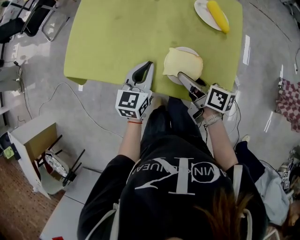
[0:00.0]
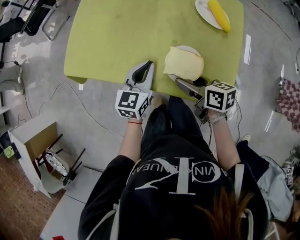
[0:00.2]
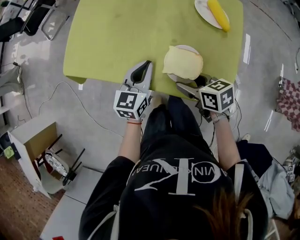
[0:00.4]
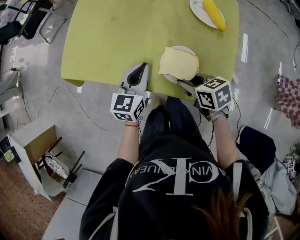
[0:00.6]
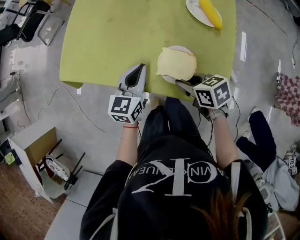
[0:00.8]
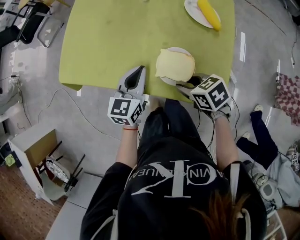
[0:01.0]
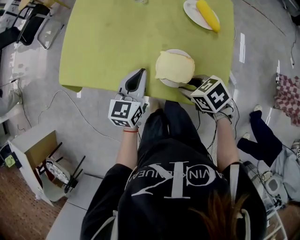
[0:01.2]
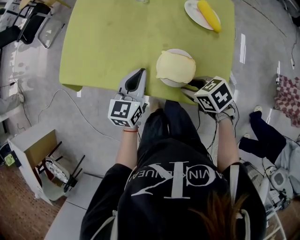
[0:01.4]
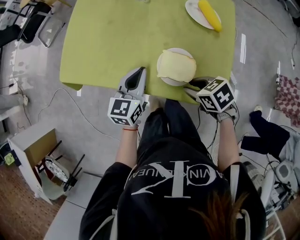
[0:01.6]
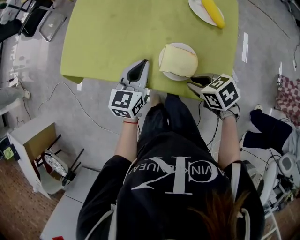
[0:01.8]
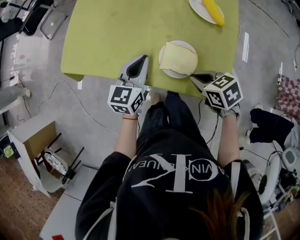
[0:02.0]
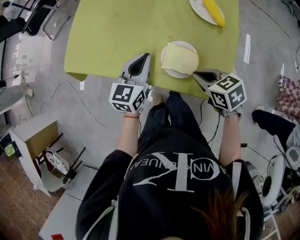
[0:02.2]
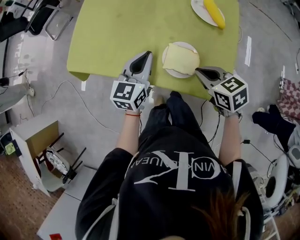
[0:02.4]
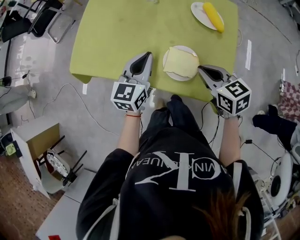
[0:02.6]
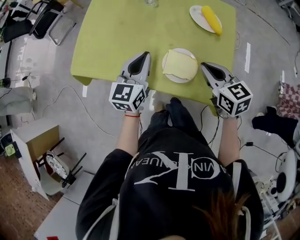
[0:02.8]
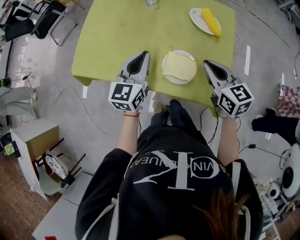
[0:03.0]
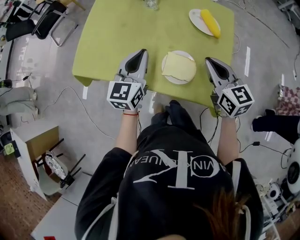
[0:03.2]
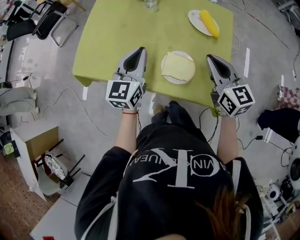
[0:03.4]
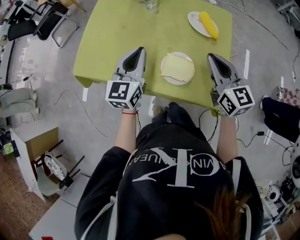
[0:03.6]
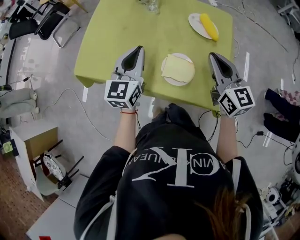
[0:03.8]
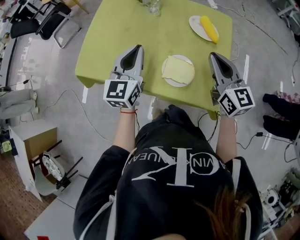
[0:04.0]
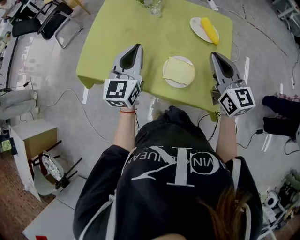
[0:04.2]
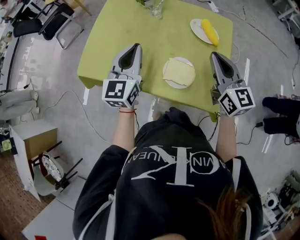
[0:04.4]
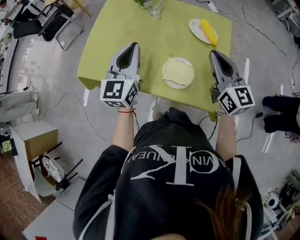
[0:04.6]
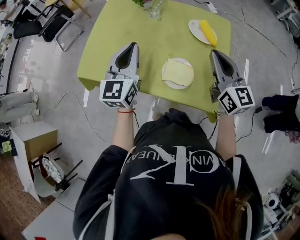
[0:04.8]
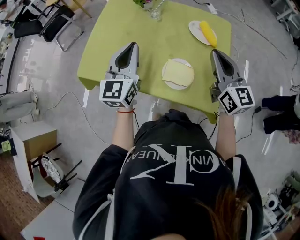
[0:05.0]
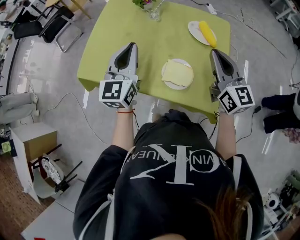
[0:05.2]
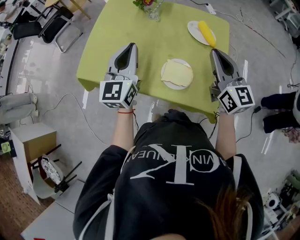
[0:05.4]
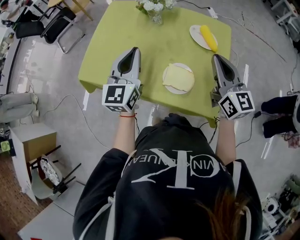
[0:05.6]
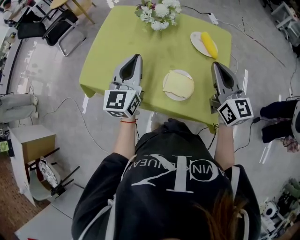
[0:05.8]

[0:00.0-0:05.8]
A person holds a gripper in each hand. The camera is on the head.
0:00.0 to 0:01.4: The right gripper ends up approximately 5 cm from where it was, and tips its fingers downward by some 30 degrees.
0:01.4 to 0:02.8: The right gripper goes some 10 cm upward, rotates about 40 degrees, and closes its fingers; the left gripper shifts some 5 cm upward.
0:02.8 to 0:04.4: Both grippers travel together upward, roughly 10 cm. The right gripper swivels roughly 30 degrees.
0:04.4 to 0:05.8: The grippers stay close to where they were, moving slightly.

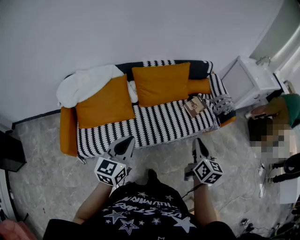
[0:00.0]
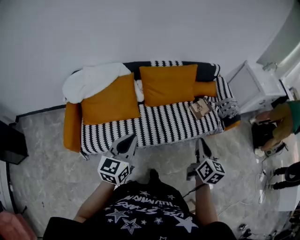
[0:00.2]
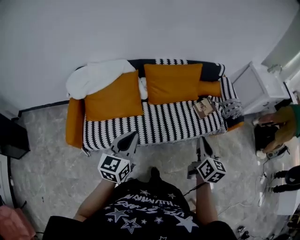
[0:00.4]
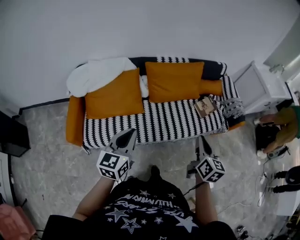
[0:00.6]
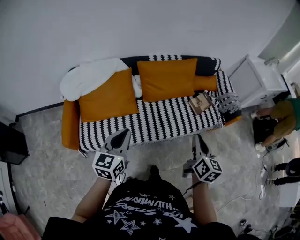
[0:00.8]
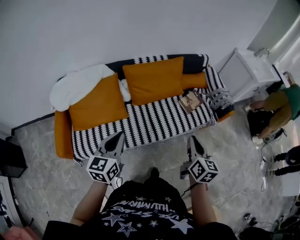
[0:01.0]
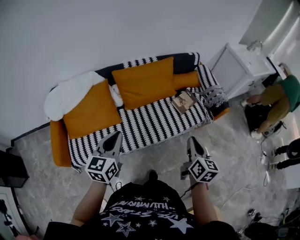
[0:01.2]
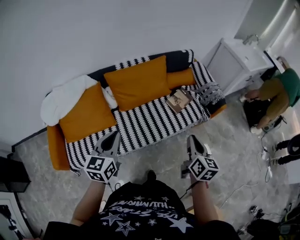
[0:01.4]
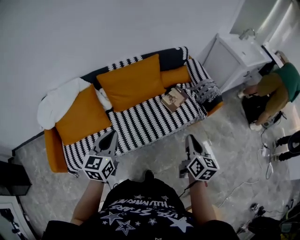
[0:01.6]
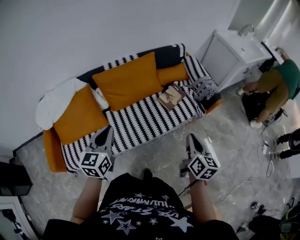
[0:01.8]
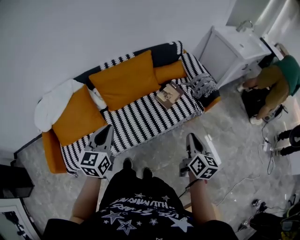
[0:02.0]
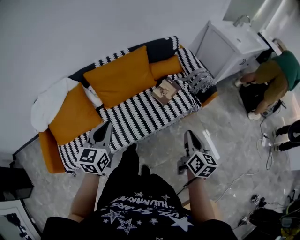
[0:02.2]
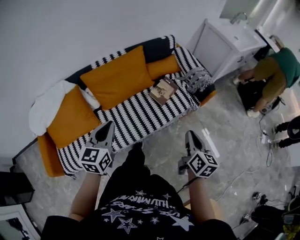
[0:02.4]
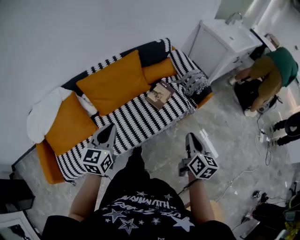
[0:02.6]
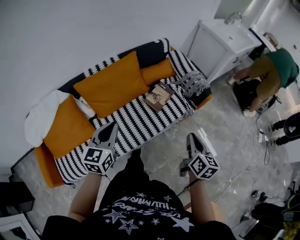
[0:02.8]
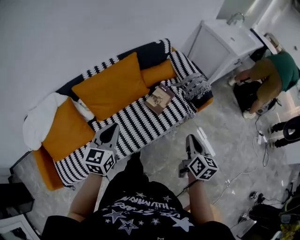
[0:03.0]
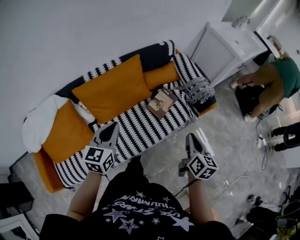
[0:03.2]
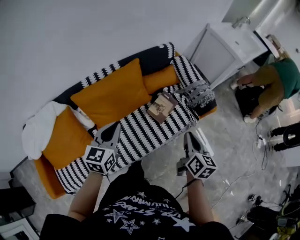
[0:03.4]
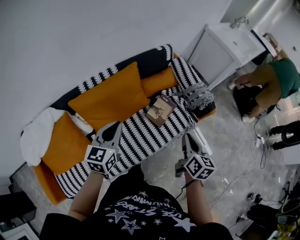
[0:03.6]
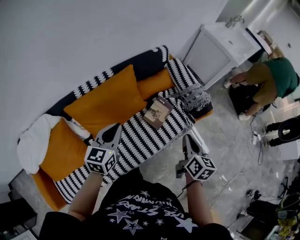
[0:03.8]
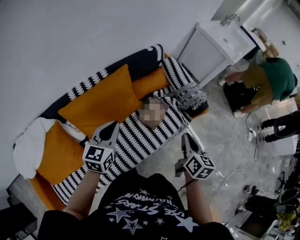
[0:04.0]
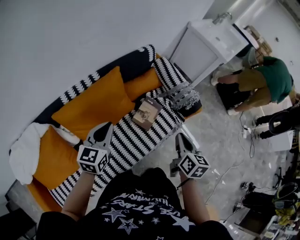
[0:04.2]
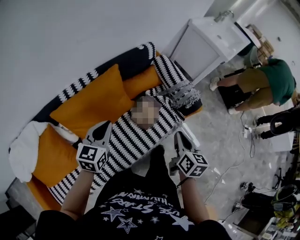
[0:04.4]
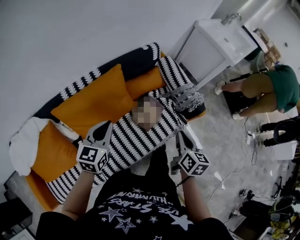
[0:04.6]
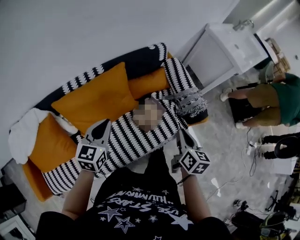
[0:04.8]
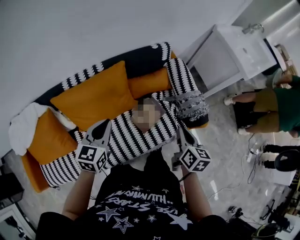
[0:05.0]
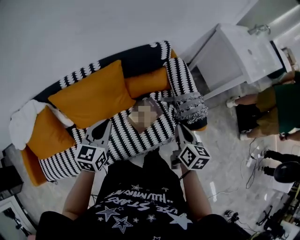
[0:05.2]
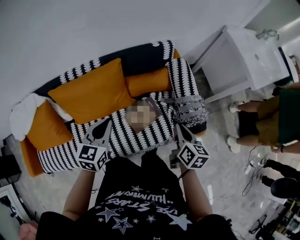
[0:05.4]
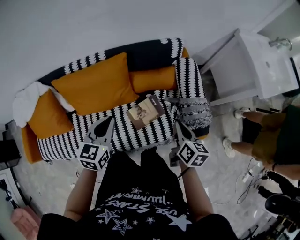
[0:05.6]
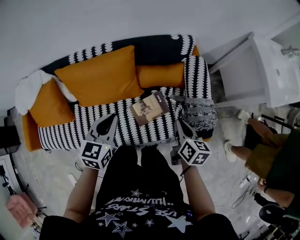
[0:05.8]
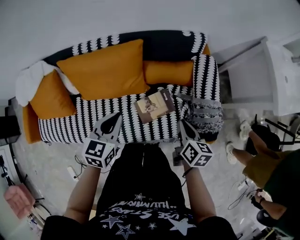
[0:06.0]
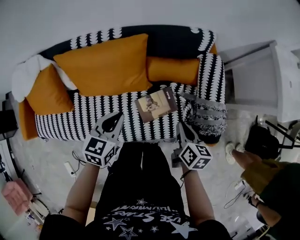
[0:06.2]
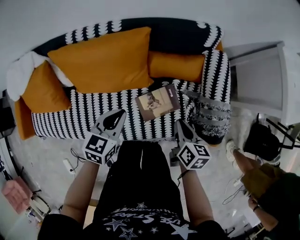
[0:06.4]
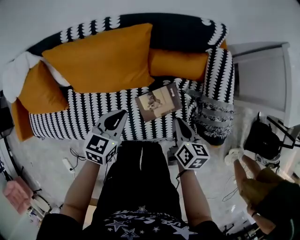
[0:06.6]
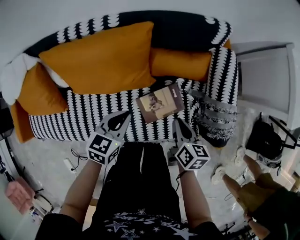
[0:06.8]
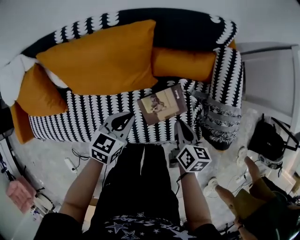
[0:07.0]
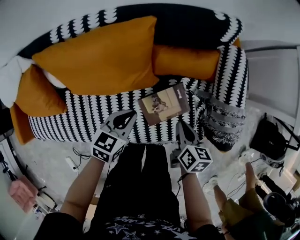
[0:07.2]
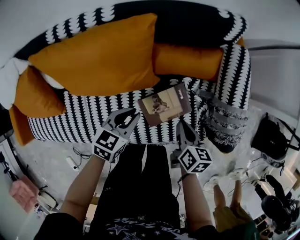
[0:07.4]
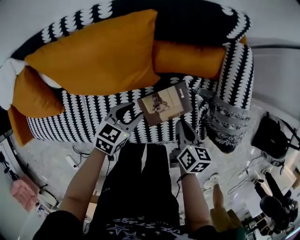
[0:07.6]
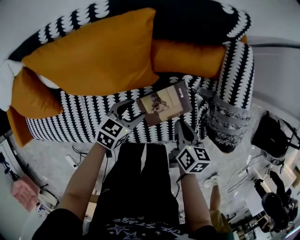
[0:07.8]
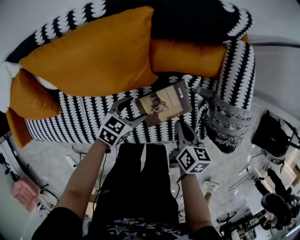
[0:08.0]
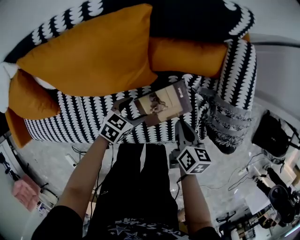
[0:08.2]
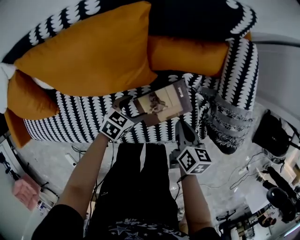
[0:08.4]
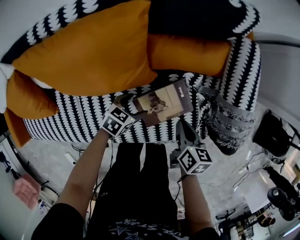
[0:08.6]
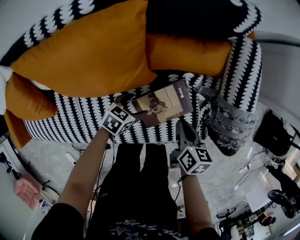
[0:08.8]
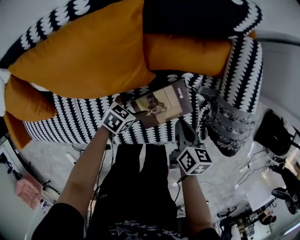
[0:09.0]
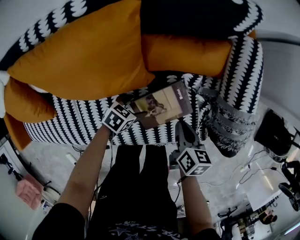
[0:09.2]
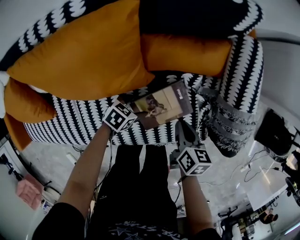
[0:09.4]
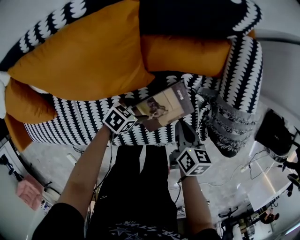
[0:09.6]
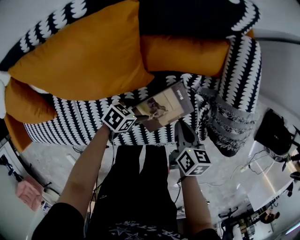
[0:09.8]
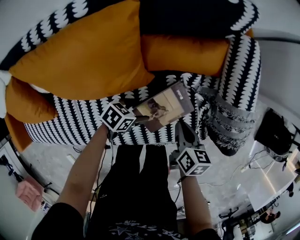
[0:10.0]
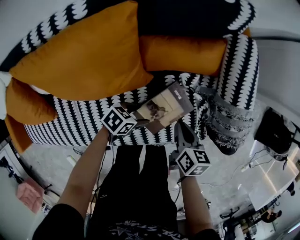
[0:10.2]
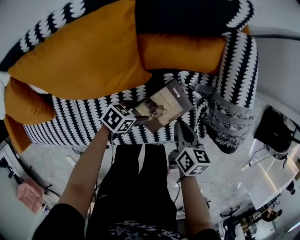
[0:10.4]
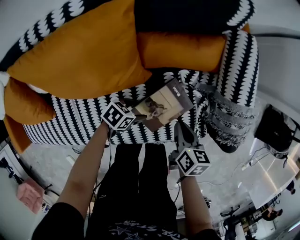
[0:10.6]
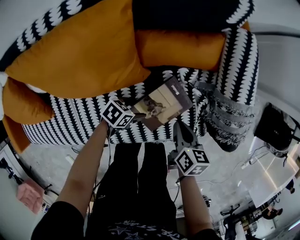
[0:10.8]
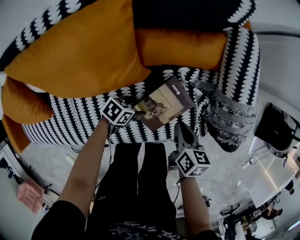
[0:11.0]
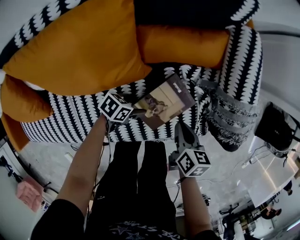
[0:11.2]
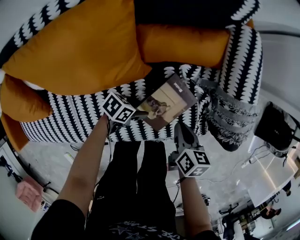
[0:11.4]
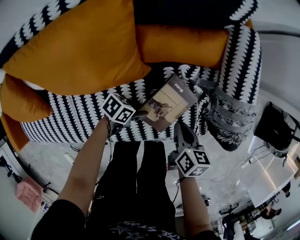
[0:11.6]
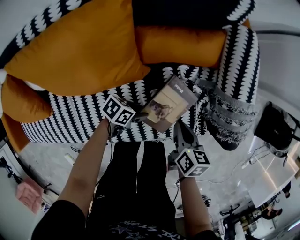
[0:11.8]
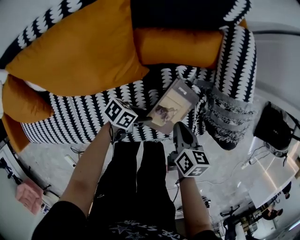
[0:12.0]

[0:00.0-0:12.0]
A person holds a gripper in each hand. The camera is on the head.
0:00.0 to 0:01.6: The left gripper goes approximately 15 cm forward and to the right, while the right gripper shifts about 15 cm to the right.
0:01.6 to 0:03.0: The two grippers go about 15 cm forward and to the right.
0:03.0 to 0:04.4: The right gripper shifts about 15 cm forward and to the left; the left gripper goes roughly 15 cm forward.
0:04.4 to 0:06.0: The left gripper ends up roughly 15 cm from where it was, and changes its angle by roughly 30 degrees; the right gripper shifts by about 25 cm, and turns by some 40 degrees.
0:06.0 to 0:07.6: Both grippers move downward, about 20 cm. The left gripper changes its angle by approximately 20 degrees, and opens up.
0:07.6 to 0:09.0: The left gripper is displaced downward by approximately 15 cm, and opens up.
0:09.0 to 0:10.4: The grippers make only small movements.
0:10.4 to 0:12.0: The left gripper shifts by about 5 cm, and closes.

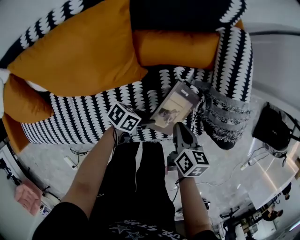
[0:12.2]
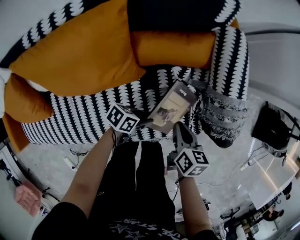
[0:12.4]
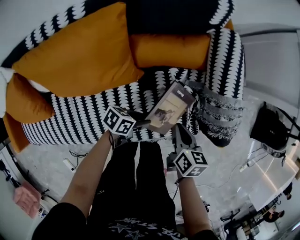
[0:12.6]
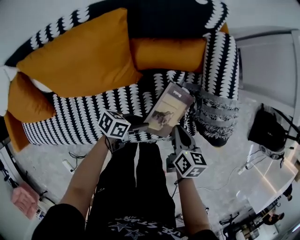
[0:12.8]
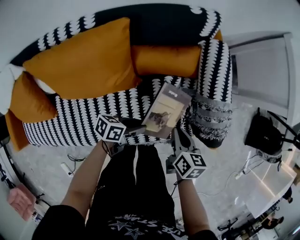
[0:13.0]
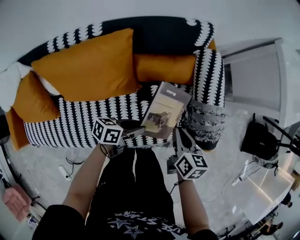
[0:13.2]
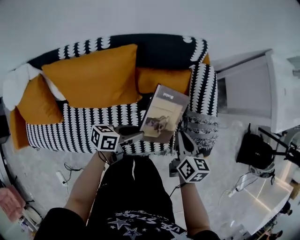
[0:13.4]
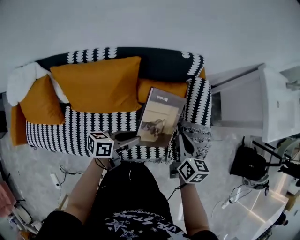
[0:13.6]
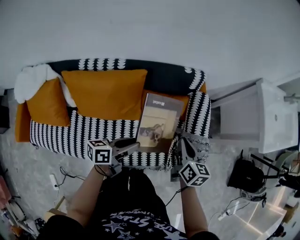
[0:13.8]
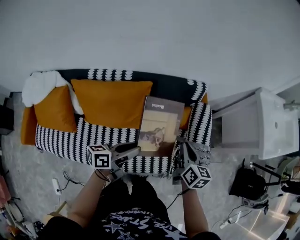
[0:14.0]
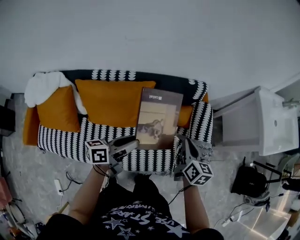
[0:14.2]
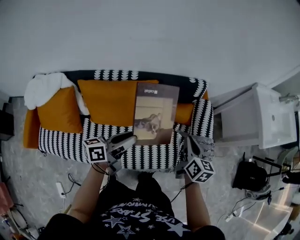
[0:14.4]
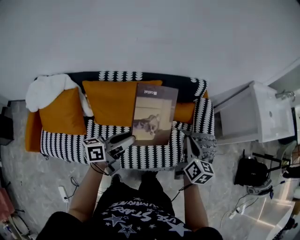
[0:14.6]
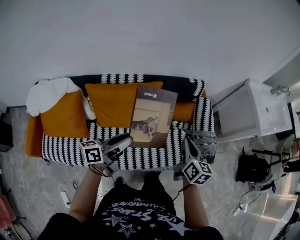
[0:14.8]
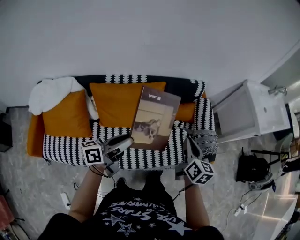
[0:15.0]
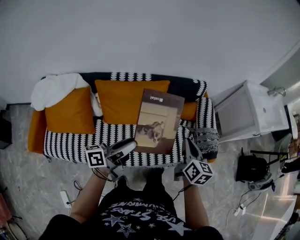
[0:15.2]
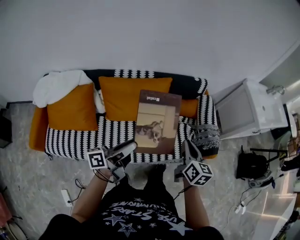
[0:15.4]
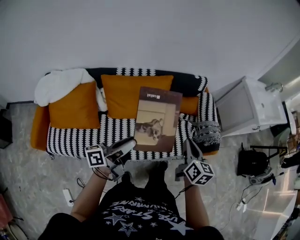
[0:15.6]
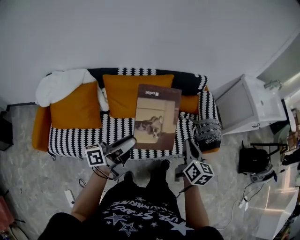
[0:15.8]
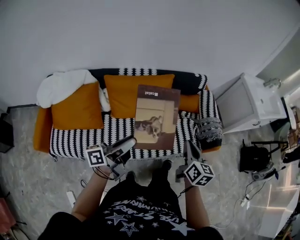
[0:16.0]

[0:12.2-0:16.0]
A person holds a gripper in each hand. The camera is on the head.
0:12.2 to 0:13.4: Both grippers travel together upward, roughly 20 cm. The left gripper swivels some 30 degrees.
0:13.4 to 0:14.8: The left gripper goes roughly 30 cm upward, to the left and backward, and turns by roughly 30 degrees, while the right gripper goes about 20 cm upward, backward and to the left.
0:14.8 to 0:16.0: Both grippers move backward, about 20 cm.

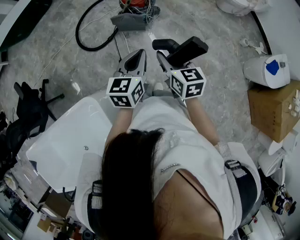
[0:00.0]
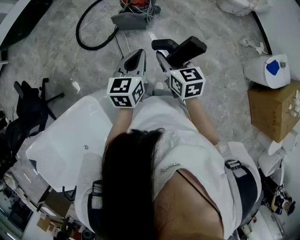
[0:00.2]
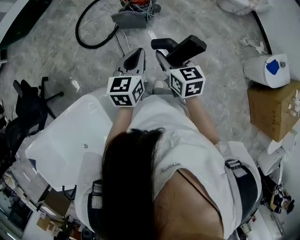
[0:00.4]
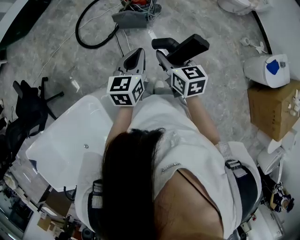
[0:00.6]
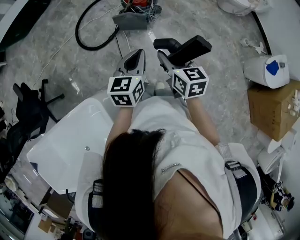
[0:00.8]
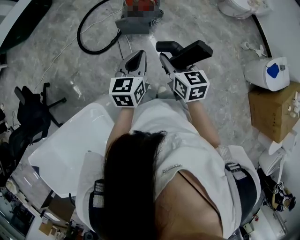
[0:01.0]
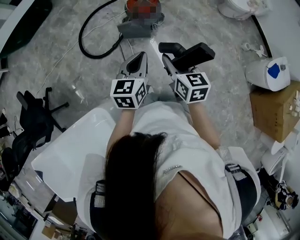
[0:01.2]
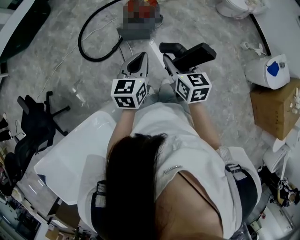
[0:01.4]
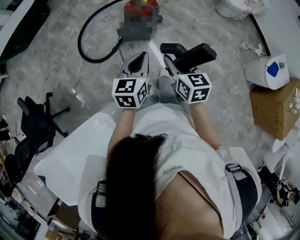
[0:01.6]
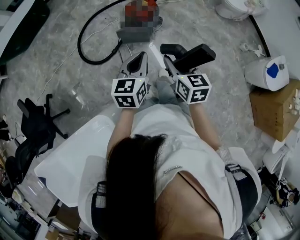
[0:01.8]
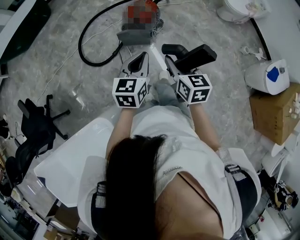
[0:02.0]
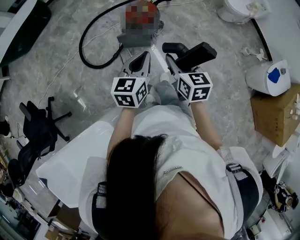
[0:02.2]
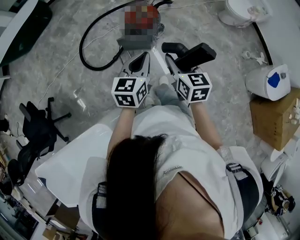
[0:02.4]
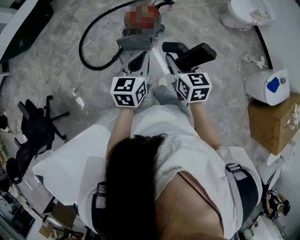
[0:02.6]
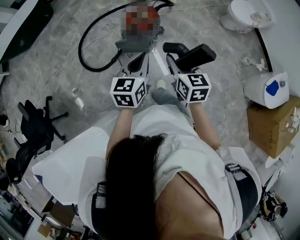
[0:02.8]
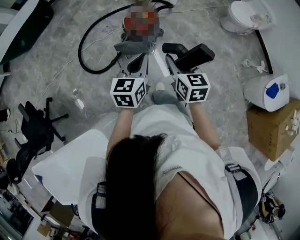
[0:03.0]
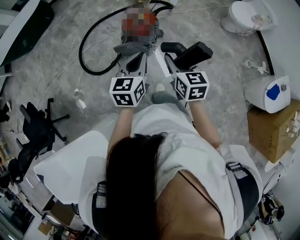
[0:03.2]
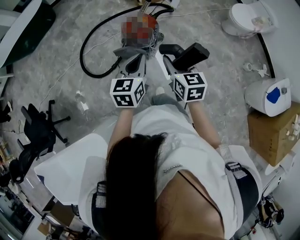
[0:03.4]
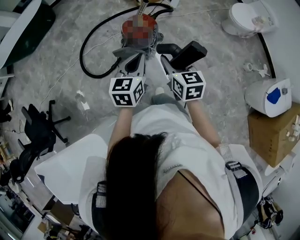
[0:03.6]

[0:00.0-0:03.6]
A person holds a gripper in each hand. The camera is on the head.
0:00.0 to 0:01.8: The right gripper is displaced forward by approximately 10 cm; the left gripper shifts approximately 10 cm forward and to the left.
0:01.8 to 0:03.6: Both grippers travel together forward and to the right, about 20 cm.
